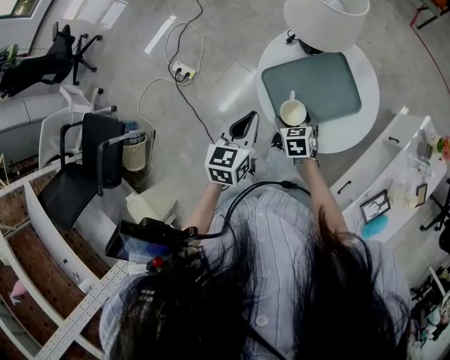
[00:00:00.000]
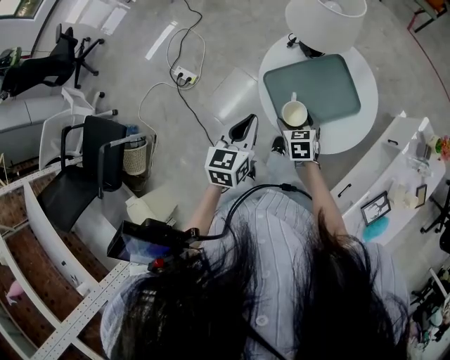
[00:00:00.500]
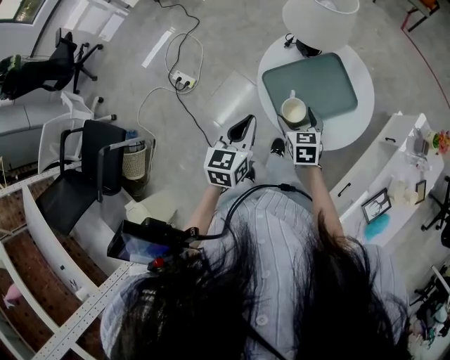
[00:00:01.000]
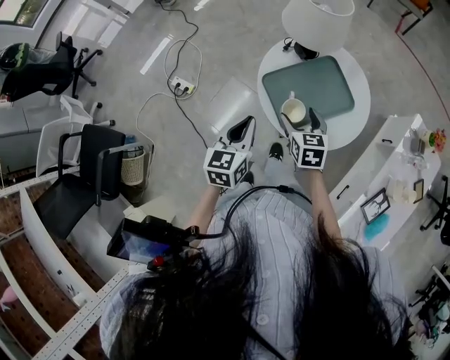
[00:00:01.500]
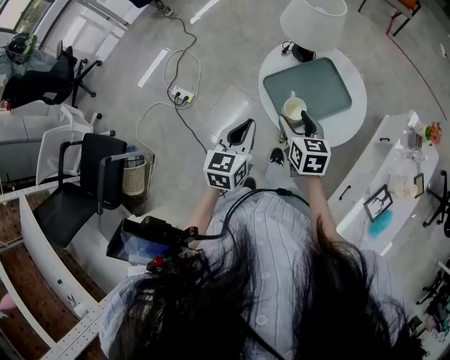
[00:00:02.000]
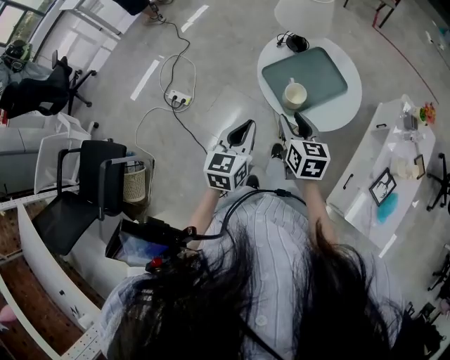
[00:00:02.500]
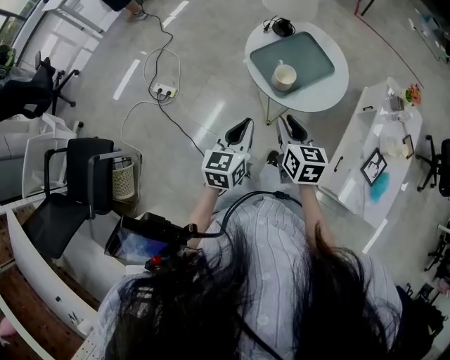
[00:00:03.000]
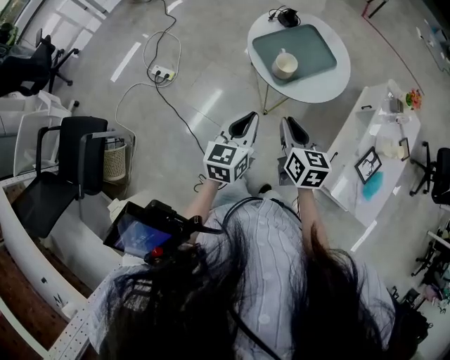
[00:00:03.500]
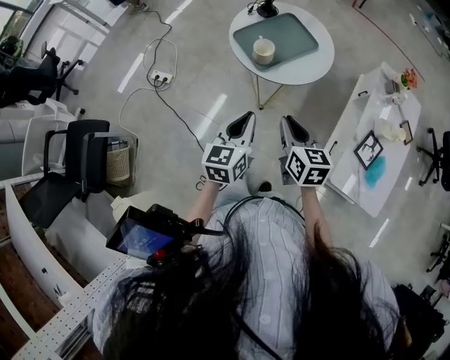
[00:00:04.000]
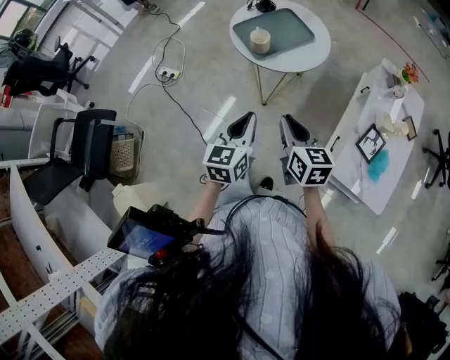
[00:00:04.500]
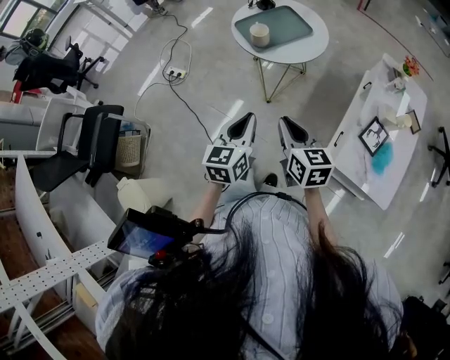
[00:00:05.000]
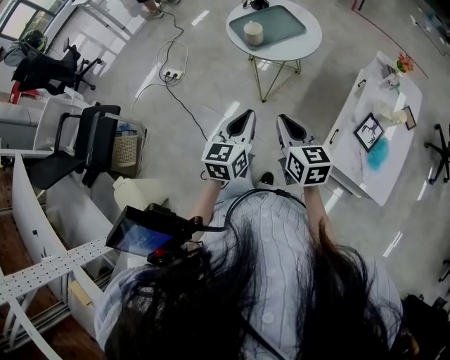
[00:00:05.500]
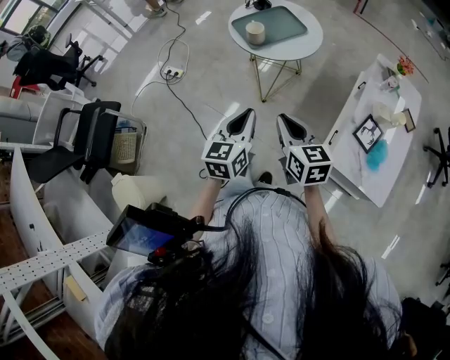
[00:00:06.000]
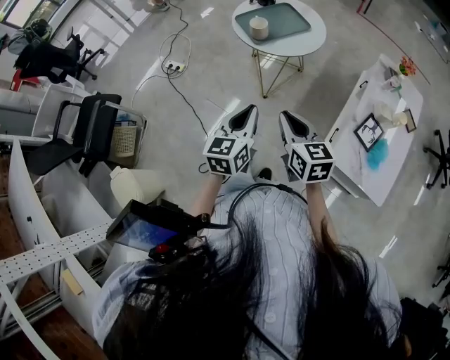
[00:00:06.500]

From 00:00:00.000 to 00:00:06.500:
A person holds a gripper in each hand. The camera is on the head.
From 00:00:00.000 to 00:00:02.000: The left gripper moves about 5 cm. Meanwhile the right gripper is displaced upward by some 15 cm, and turns by some 30 degrees.
From 00:00:02.000 to 00:00:04.500: The right gripper goes about 35 cm backward, and closes up. Meanwhile the left gripper heads backward and to the right, covering roughly 30 cm.
From 00:00:04.500 to 00:00:06.500: Both grippers move backward, about 10 cm.

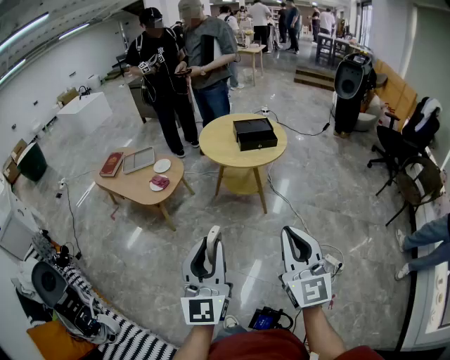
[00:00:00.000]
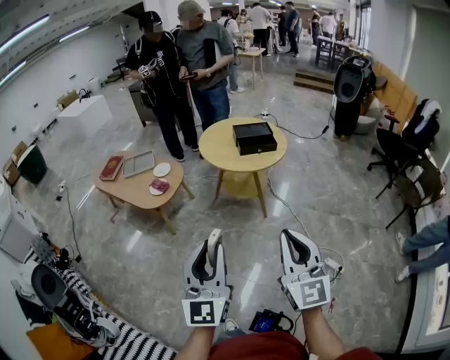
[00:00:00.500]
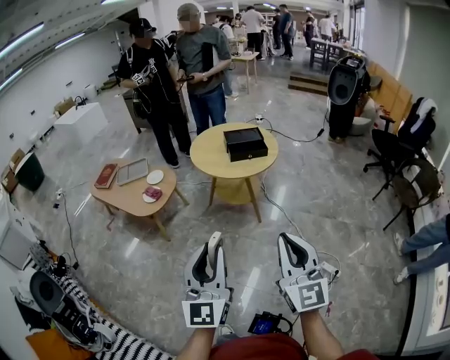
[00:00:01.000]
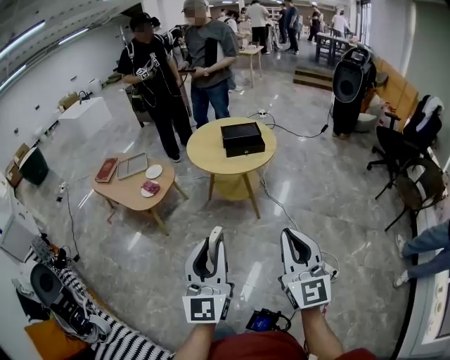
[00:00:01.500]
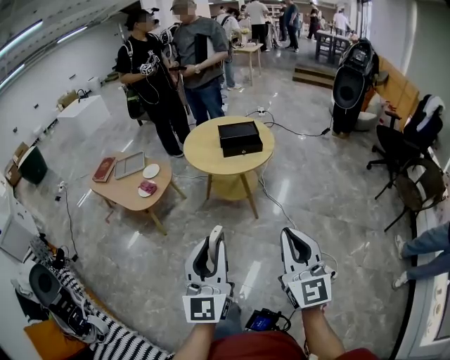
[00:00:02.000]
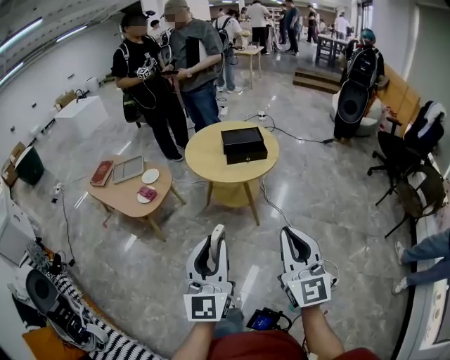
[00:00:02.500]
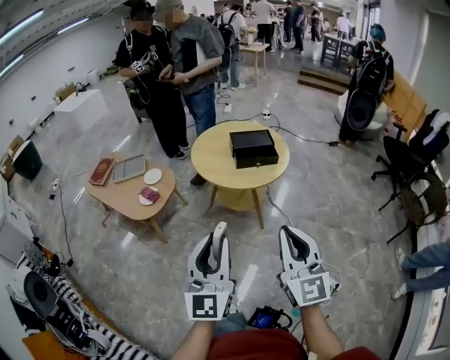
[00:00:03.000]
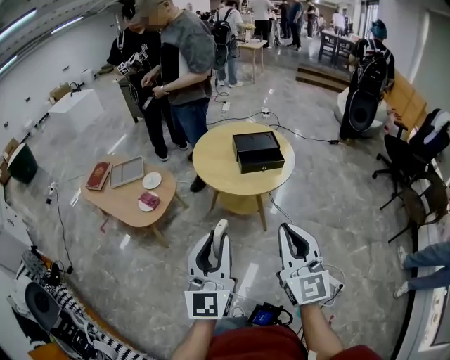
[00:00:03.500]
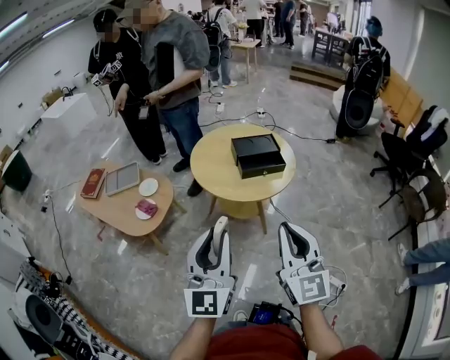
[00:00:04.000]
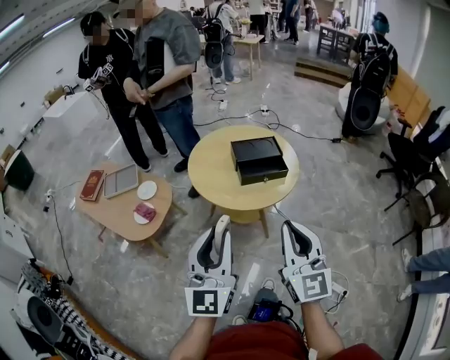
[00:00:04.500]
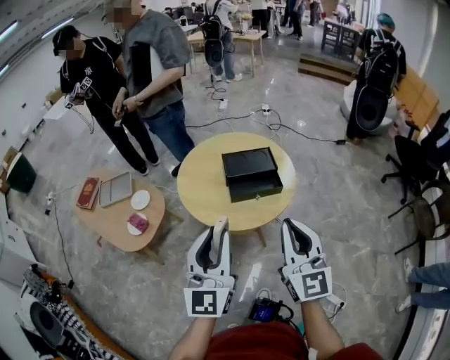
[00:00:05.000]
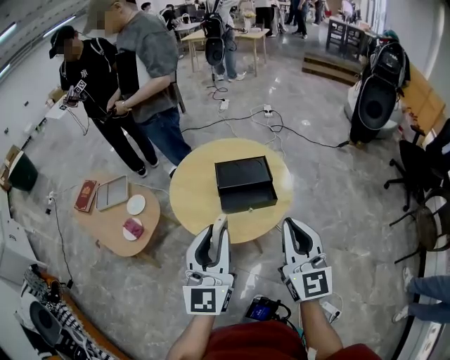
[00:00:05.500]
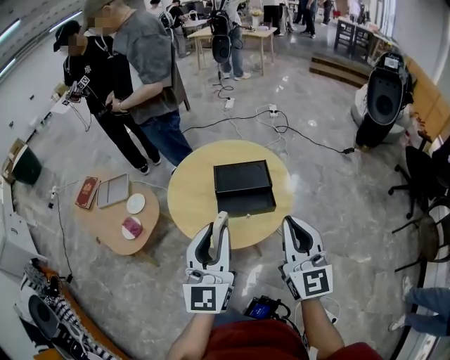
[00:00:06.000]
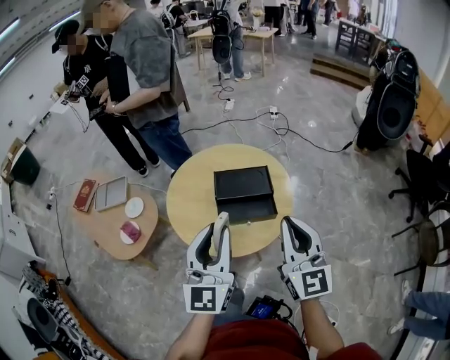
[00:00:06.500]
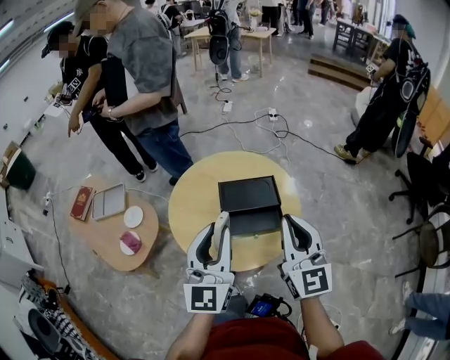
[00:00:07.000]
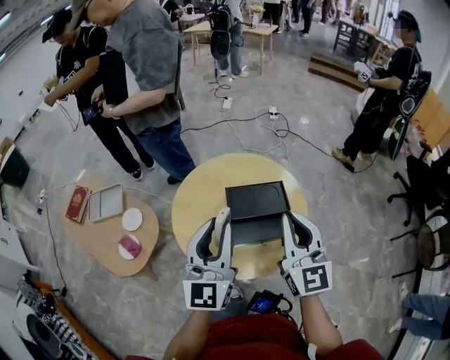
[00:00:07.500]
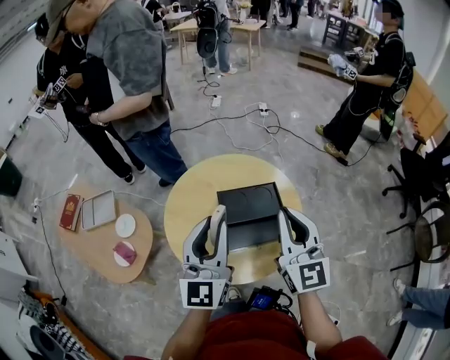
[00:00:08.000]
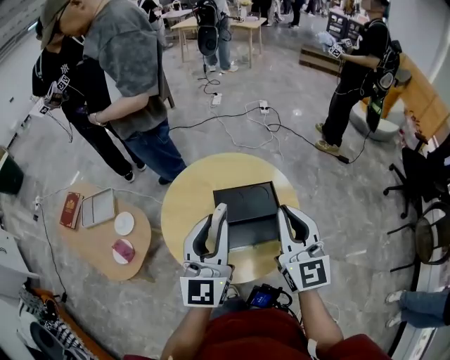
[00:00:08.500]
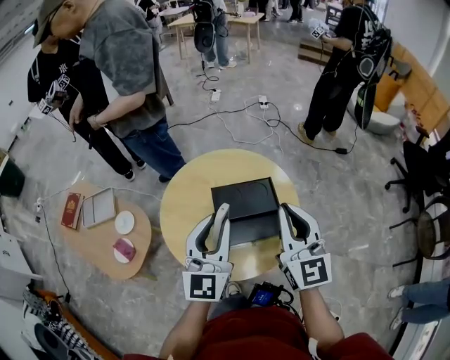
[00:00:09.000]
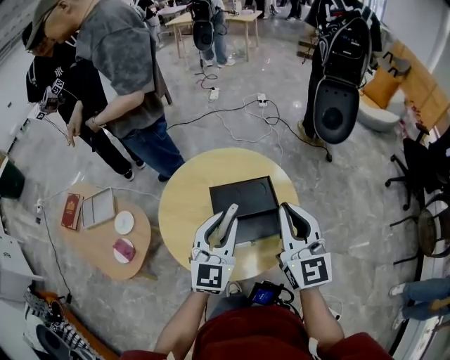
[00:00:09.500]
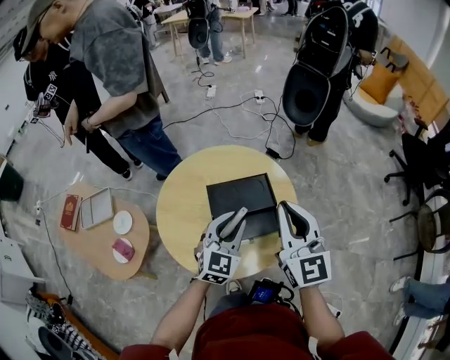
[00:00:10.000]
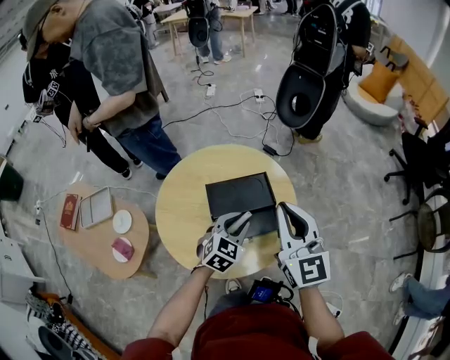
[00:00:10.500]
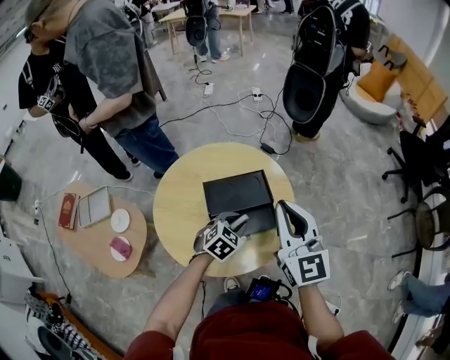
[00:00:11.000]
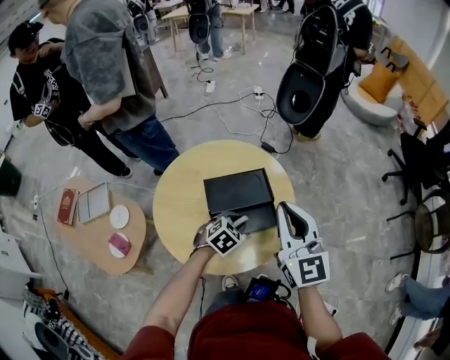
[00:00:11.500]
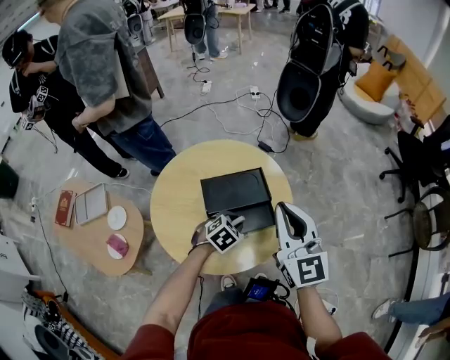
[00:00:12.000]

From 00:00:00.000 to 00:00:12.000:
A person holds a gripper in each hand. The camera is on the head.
From 00:00:00.000 to 00:00:02.000: Both grippers move to the right, roughly 15 cm.
From 00:00:02.000 to 00:00:04.000: Both grippers move forward and to the left, approximately 30 cm.
From 00:00:04.000 to 00:00:06.000: The grippers both shift forward and to the right by some 35 cm.
From 00:00:06.000 to 00:00:08.000: The left gripper shifts approximately 20 cm forward. The right gripper shifts approximately 20 cm forward and to the left.
From 00:00:08.000 to 00:00:10.000: The left gripper heads downward and to the right, covering about 20 cm, and swivels approximately 40 degrees; the right gripper travels to the right by roughly 5 cm.
From 00:00:10.000 to 00:00:12.000: The left gripper goes some 15 cm downward, and angles its fingers downward, by roughly 40 degrees.

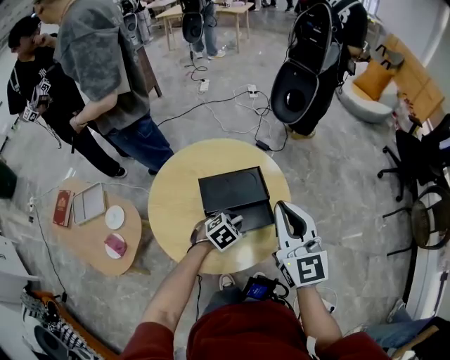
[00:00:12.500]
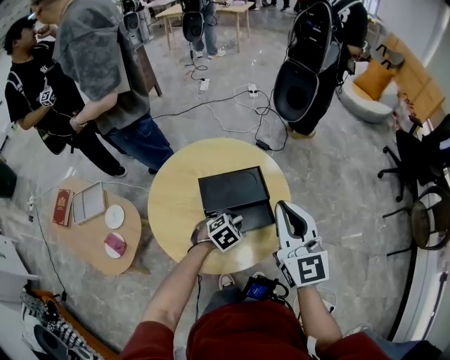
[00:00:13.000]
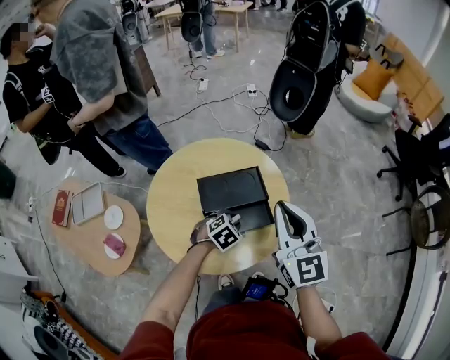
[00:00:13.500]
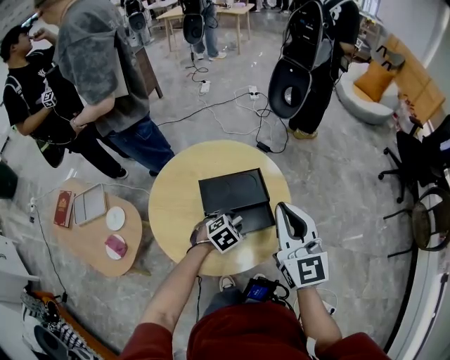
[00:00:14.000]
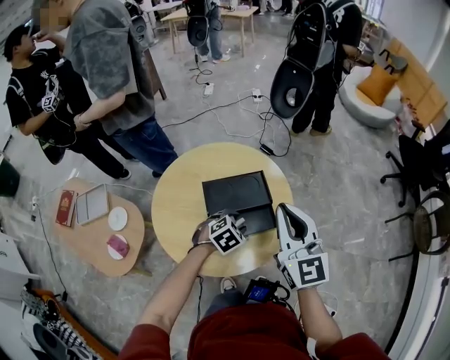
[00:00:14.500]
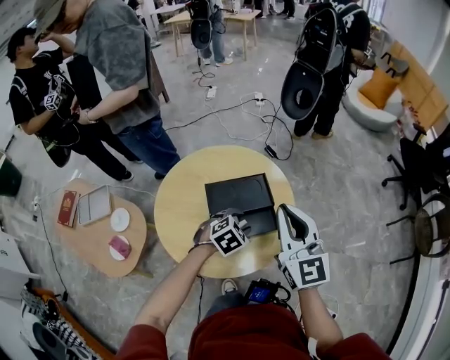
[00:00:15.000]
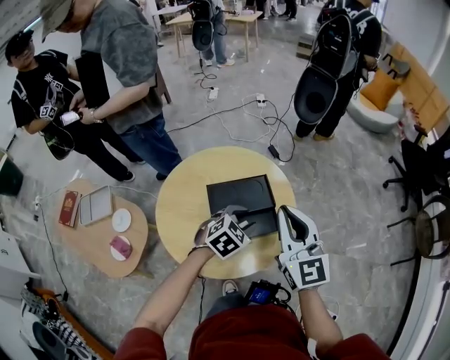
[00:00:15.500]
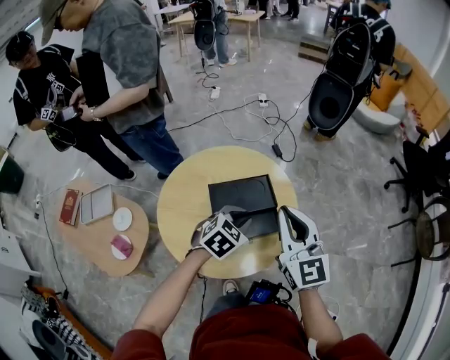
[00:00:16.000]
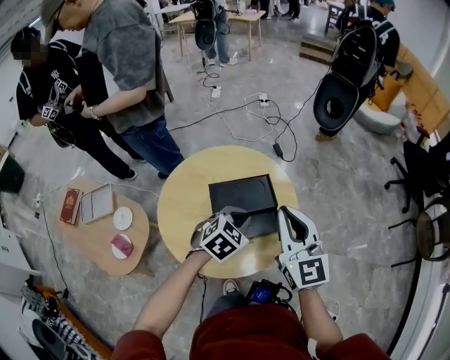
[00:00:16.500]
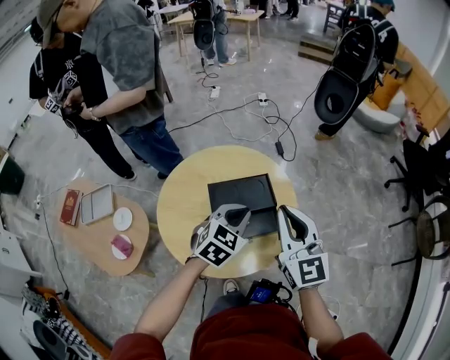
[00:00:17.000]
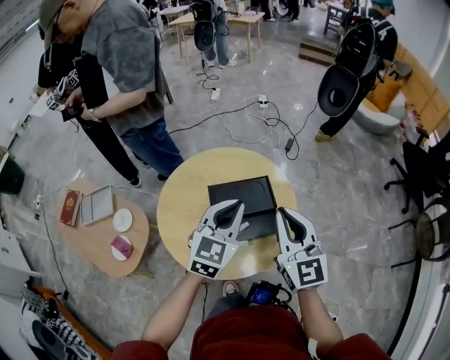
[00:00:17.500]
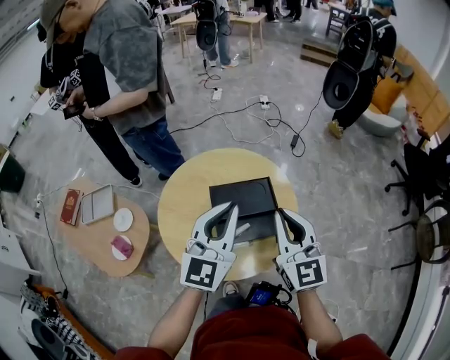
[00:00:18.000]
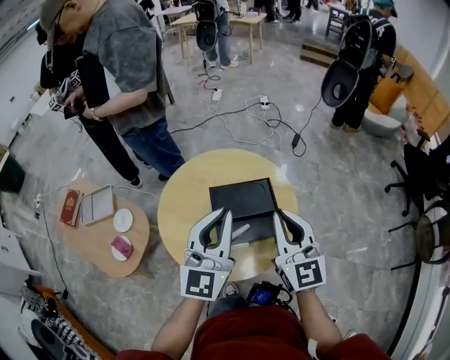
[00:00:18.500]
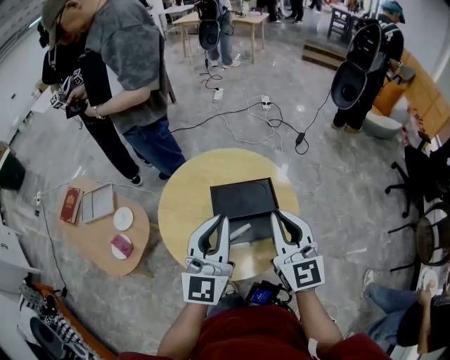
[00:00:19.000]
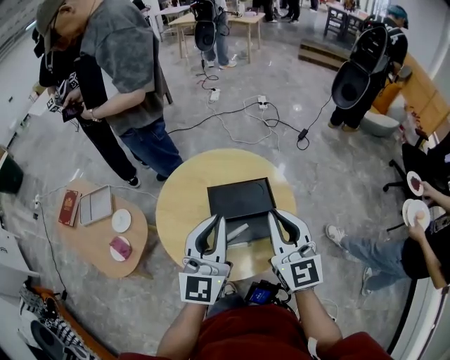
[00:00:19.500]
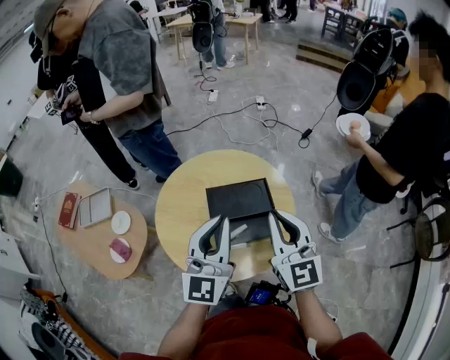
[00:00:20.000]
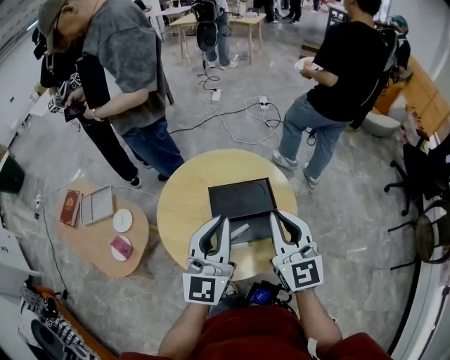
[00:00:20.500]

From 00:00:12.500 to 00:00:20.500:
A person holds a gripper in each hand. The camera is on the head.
From 00:00:12.500 to 00:00:14.500: The grippers move only a little.
From 00:00:14.500 to 00:00:16.500: The left gripper heads upward, covering approximately 10 cm, and closes up.
From 00:00:16.500 to 00:00:18.500: The left gripper travels upward by some 20 cm, and tips its fingers upward by approximately 60 degrees.
From 00:00:18.500 to 00:00:20.500: The grippers stay close to where they were, moving slightly.
